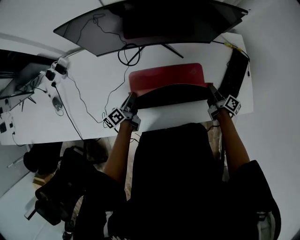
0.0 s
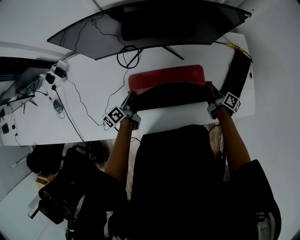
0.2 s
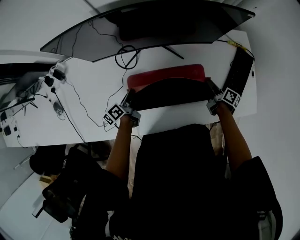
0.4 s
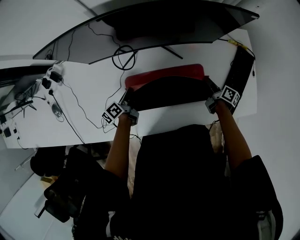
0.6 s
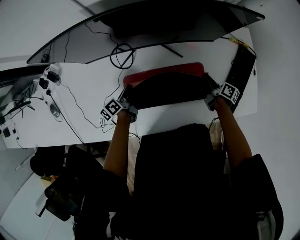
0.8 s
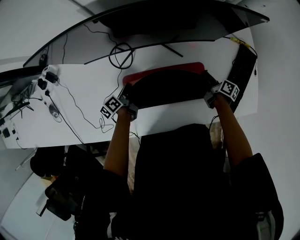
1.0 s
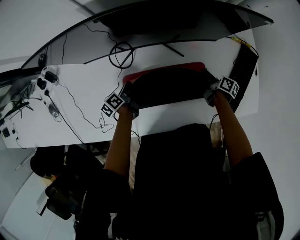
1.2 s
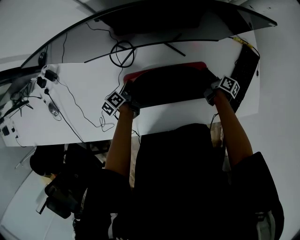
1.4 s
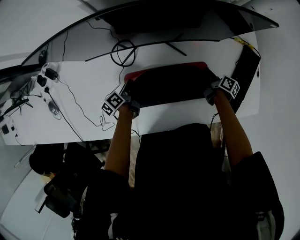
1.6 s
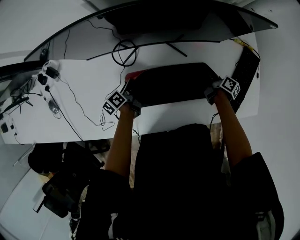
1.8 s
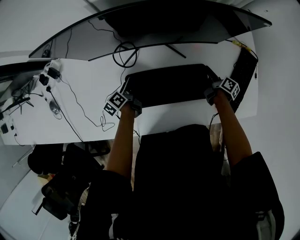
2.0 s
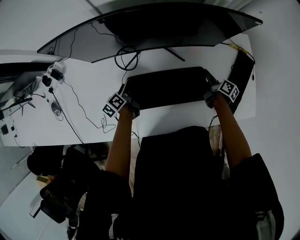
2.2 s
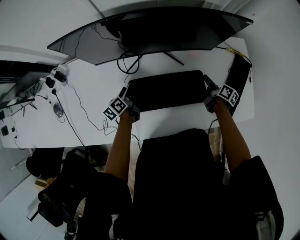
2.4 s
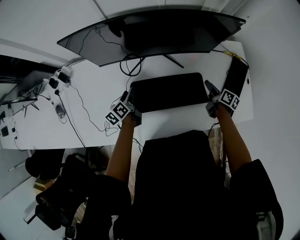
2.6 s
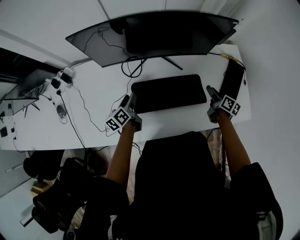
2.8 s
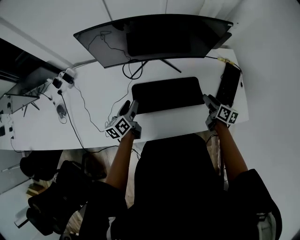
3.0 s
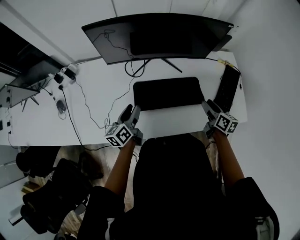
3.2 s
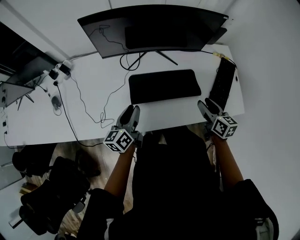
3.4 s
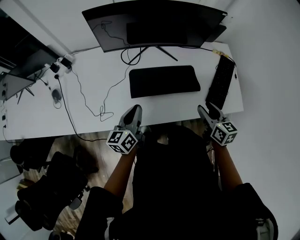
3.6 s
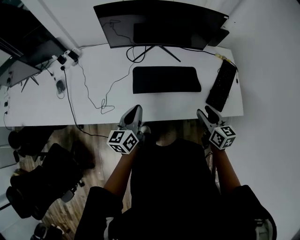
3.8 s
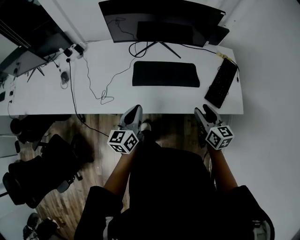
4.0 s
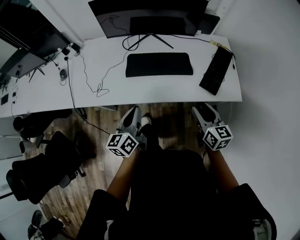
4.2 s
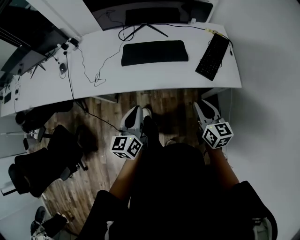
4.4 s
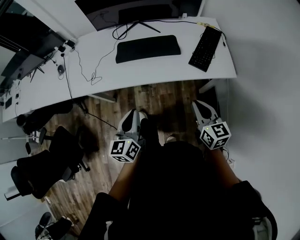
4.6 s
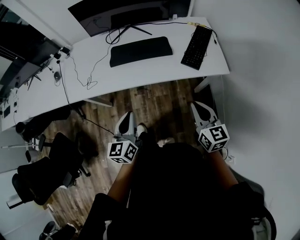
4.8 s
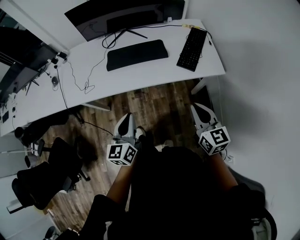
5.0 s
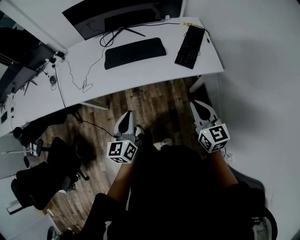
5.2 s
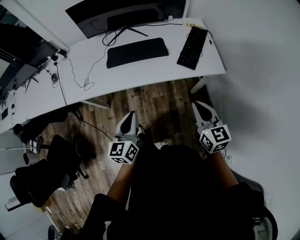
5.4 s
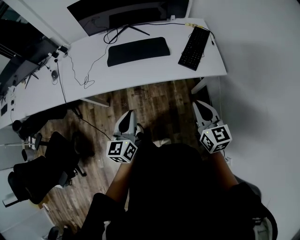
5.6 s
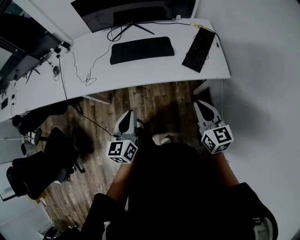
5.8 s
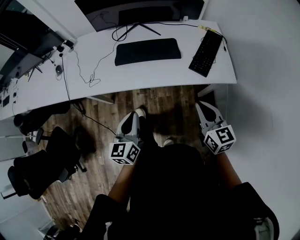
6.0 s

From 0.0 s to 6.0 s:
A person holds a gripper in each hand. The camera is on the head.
From 0.0 s to 1.6 s: The two grippers go about 15 cm forward and downward.
From 1.6 s to 3.0 s: The two grippers go some 20 cm upward and backward. The left gripper turns by some 30 degrees, and opens up, while the right gripper rotates about 30 degrees, and opens.
From 3.0 s to 4.4 s: The right gripper moves backward, approximately 35 cm, rotates roughly 30 degrees, and closes, while the left gripper shifts about 40 cm backward and to the right, swivels roughly 20 degrees, and closes.

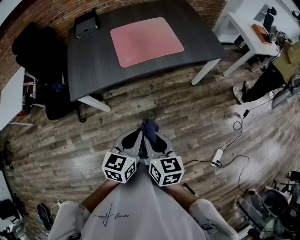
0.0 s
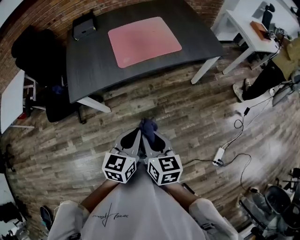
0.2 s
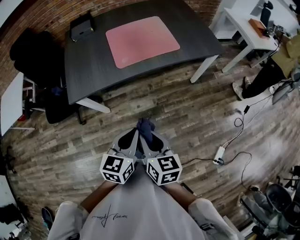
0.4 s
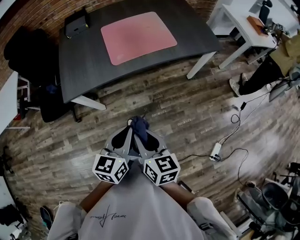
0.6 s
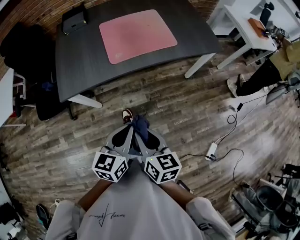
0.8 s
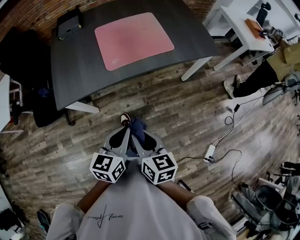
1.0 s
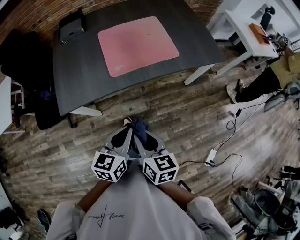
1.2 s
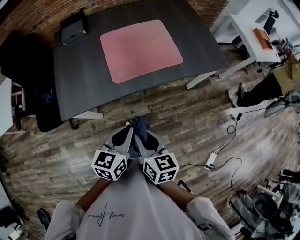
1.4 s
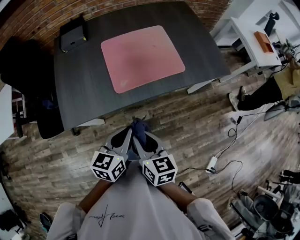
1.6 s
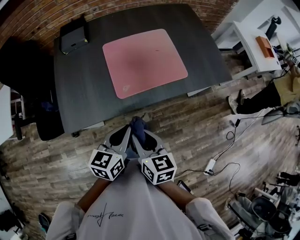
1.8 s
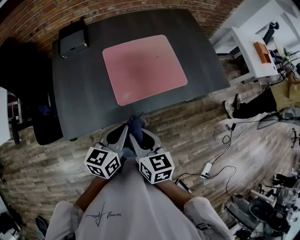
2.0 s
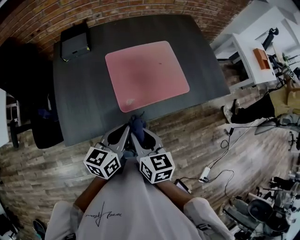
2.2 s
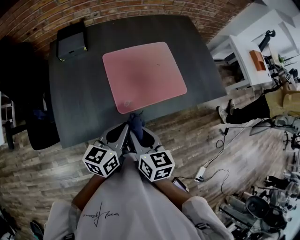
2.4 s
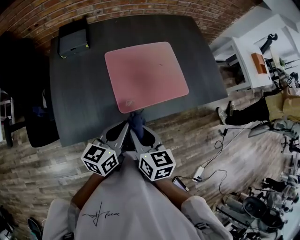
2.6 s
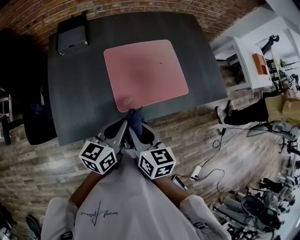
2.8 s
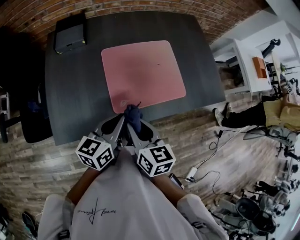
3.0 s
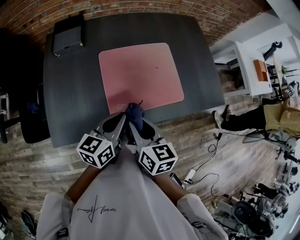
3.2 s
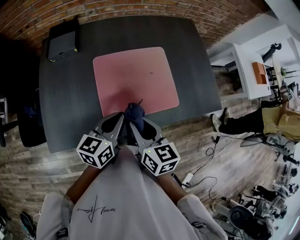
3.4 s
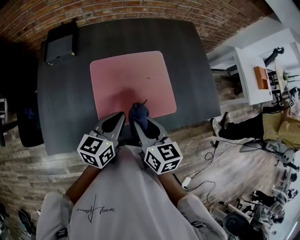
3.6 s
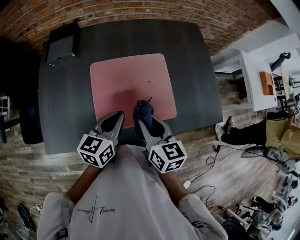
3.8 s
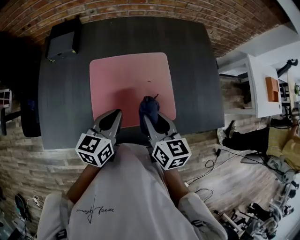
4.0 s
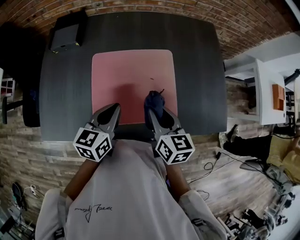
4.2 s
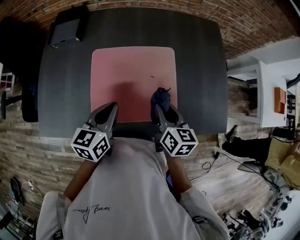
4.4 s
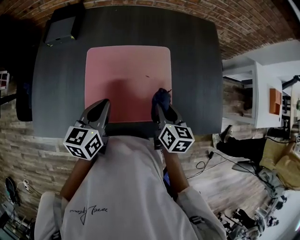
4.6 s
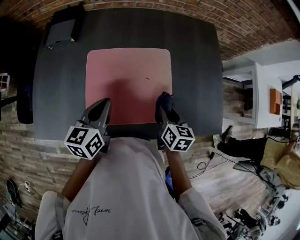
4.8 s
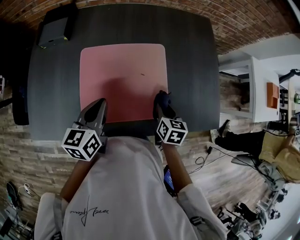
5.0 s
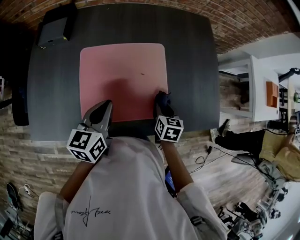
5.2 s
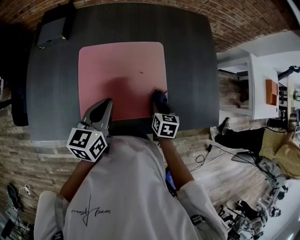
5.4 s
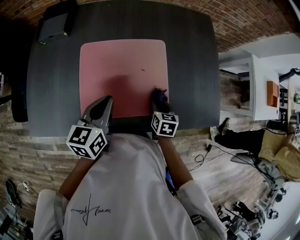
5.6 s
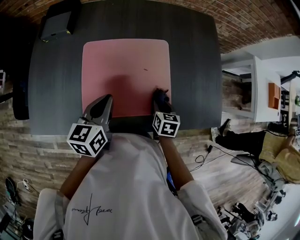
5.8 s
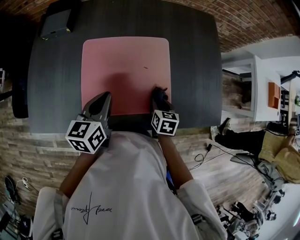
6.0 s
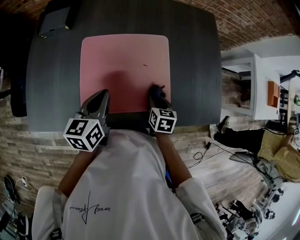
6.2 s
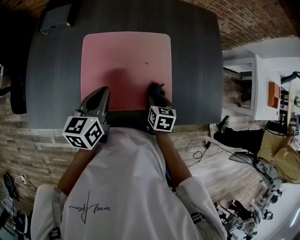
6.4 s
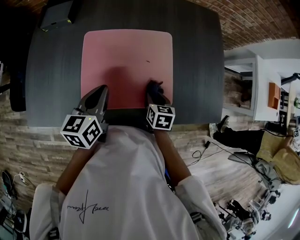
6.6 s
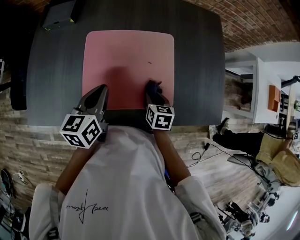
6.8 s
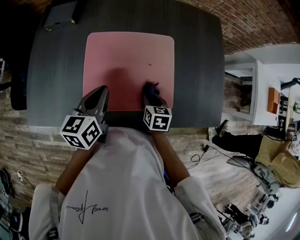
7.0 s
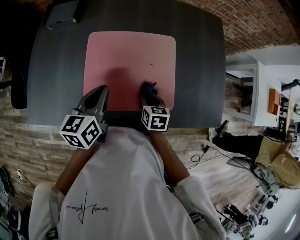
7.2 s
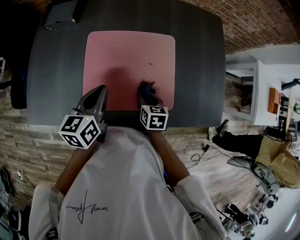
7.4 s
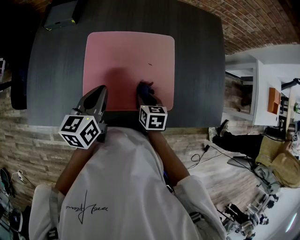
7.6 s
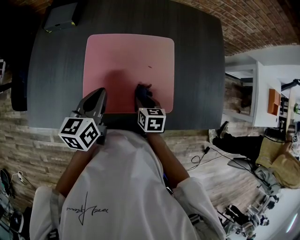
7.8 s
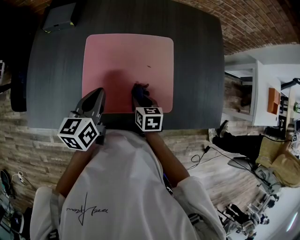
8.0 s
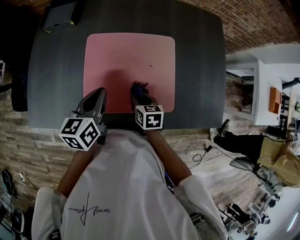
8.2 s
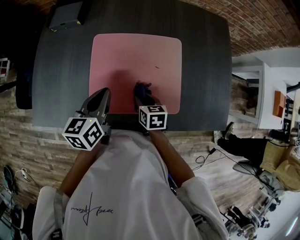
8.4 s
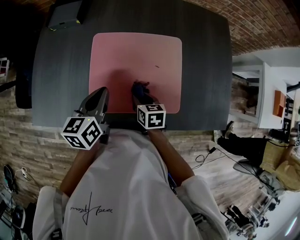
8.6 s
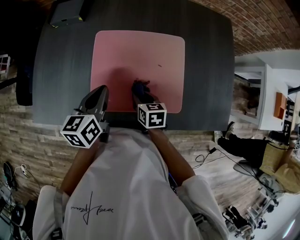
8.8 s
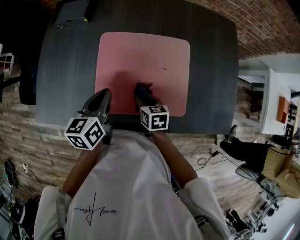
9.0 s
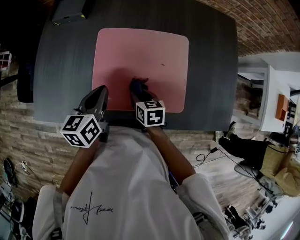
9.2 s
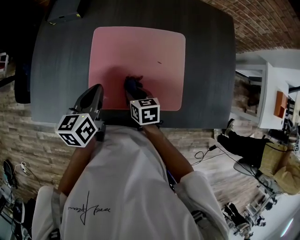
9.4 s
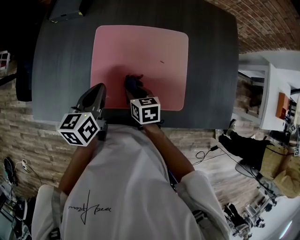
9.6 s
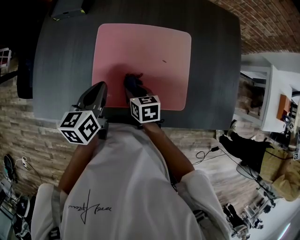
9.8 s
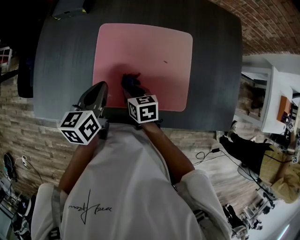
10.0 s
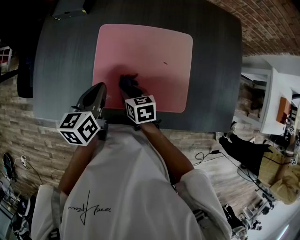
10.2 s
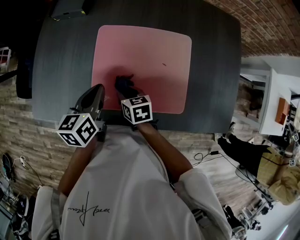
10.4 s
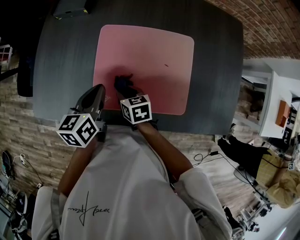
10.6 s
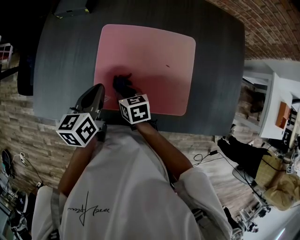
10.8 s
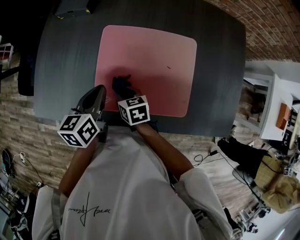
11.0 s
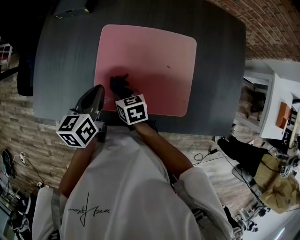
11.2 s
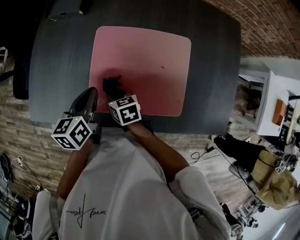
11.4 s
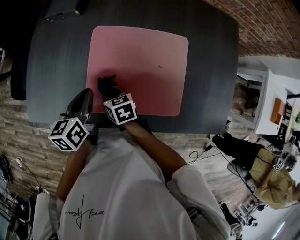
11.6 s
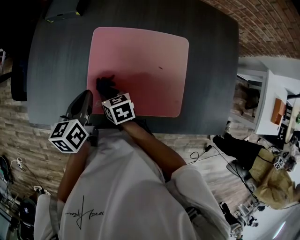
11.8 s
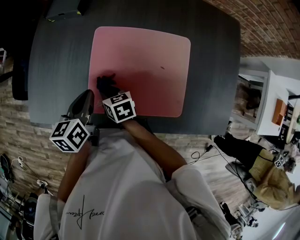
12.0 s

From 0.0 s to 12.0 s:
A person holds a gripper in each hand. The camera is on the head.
From 0.0 s to 1.6 s: Both grippers move forward, about 20 cm.
From 1.6 s to 3.0 s: Both grippers move forward, some 20 cm.
From 3.0 s to 4.4 s: The left gripper heads forward and to the right, covering some 15 cm, and turns by roughly 20 degrees. The right gripper travels to the right and forward by approximately 30 cm.
From 4.4 s to 6.0 s: The right gripper goes about 15 cm downward, and changes its angle by approximately 20 degrees.
From 6.0 s to 7.6 s: The right gripper shifts some 10 cm to the left.
From 7.6 s to 9.0 s: The right gripper heads to the left, covering approximately 5 cm.
From 9.0 s to 10.4 s: The right gripper goes some 5 cm to the left.
From 10.4 s to 12.0 s: The right gripper moves to the left, approximately 5 cm.

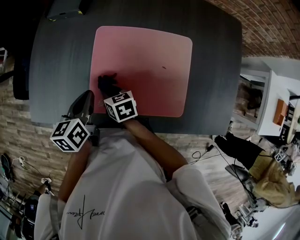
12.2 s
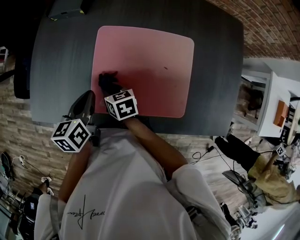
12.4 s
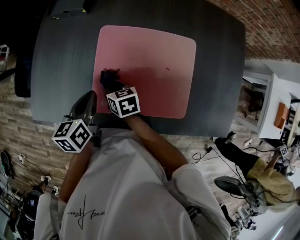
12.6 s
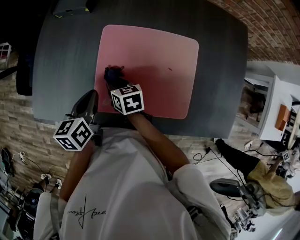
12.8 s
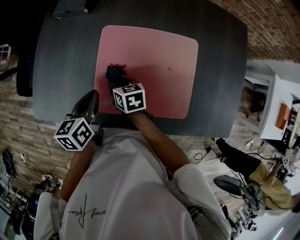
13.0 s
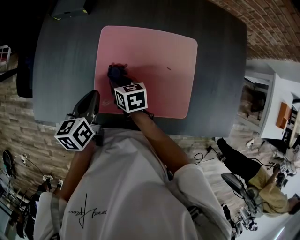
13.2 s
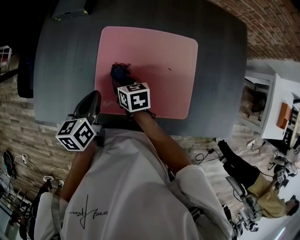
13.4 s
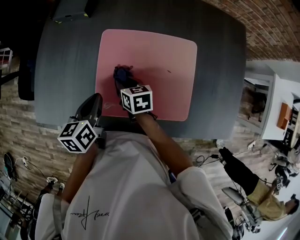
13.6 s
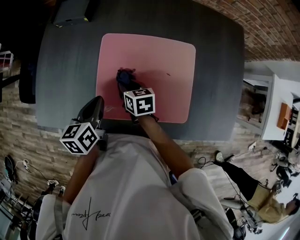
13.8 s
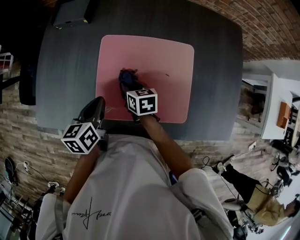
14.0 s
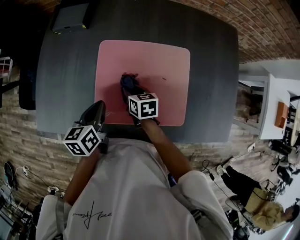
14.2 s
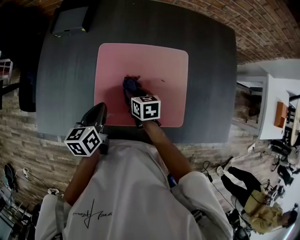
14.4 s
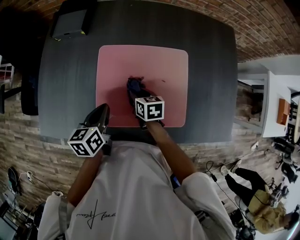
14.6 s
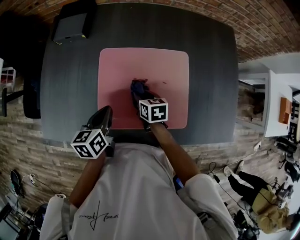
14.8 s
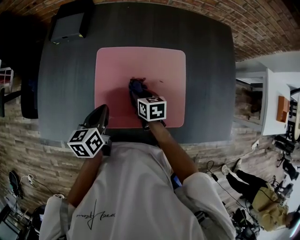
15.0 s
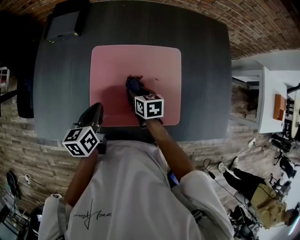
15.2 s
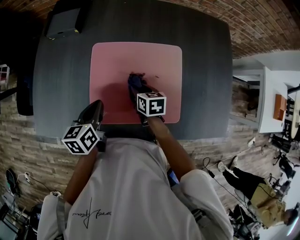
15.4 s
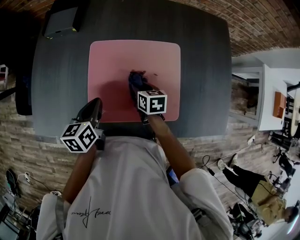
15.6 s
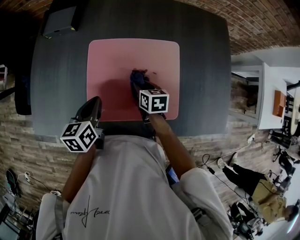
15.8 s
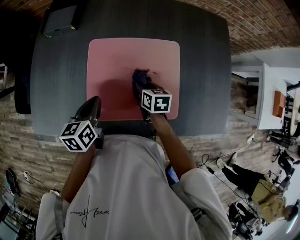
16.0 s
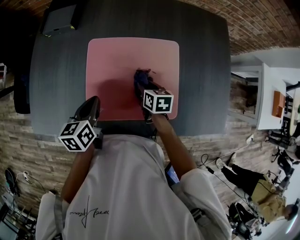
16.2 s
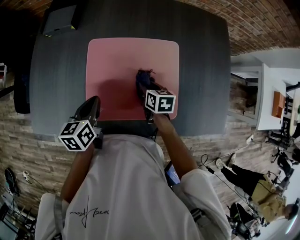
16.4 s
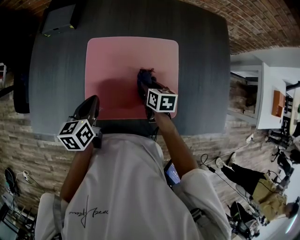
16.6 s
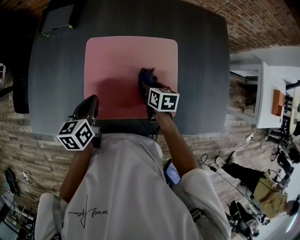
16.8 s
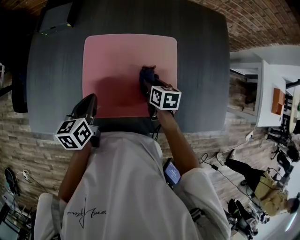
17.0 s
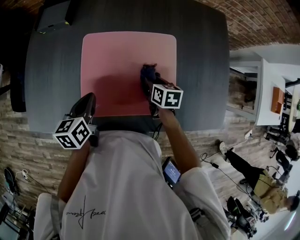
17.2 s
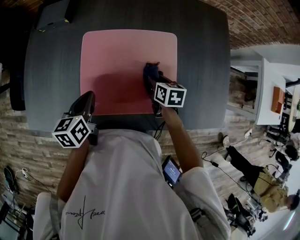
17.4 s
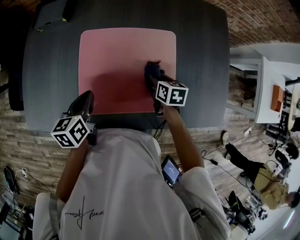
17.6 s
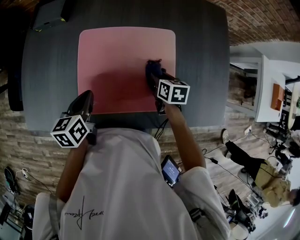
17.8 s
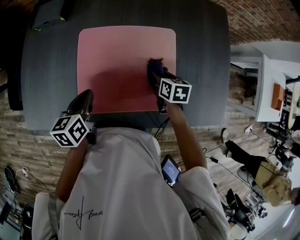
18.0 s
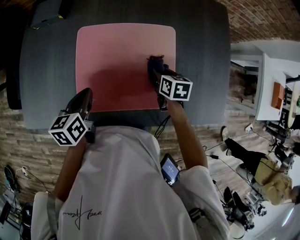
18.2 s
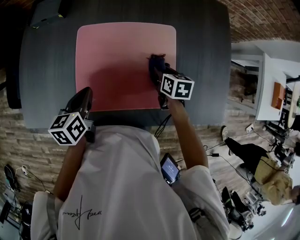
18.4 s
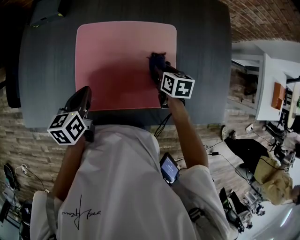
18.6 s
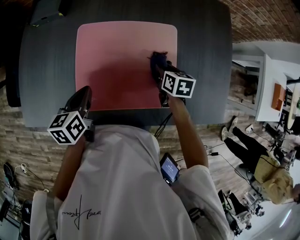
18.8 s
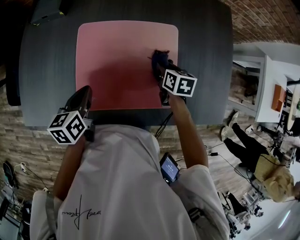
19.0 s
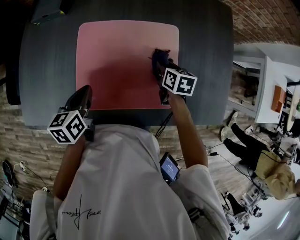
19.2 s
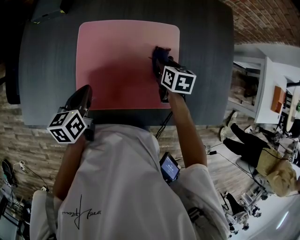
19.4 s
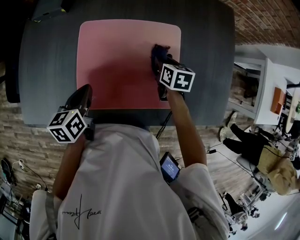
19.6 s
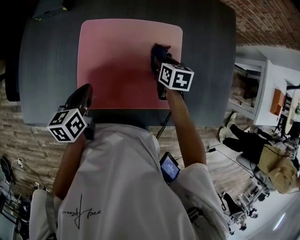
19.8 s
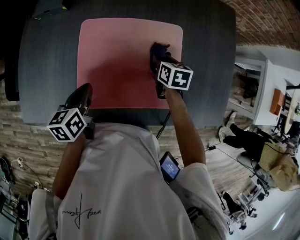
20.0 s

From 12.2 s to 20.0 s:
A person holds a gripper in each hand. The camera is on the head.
From 12.2 s to 13.8 s: The right gripper goes about 5 cm to the right.
From 13.8 s to 15.4 s: The right gripper travels to the right by some 10 cm.
From 15.4 s to 16.8 s: The right gripper shifts roughly 5 cm to the right.
From 16.8 s to 18.4 s: The right gripper shifts approximately 5 cm to the right.
From 18.4 s to 20.0 s: The right gripper moves some 5 cm.
